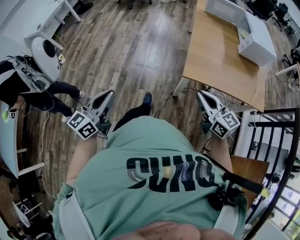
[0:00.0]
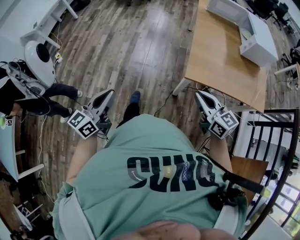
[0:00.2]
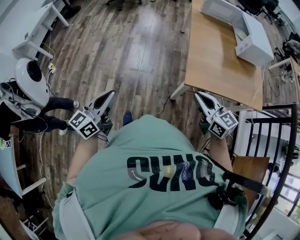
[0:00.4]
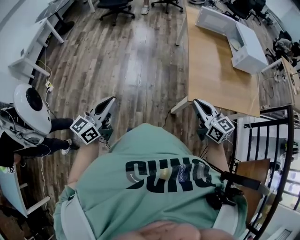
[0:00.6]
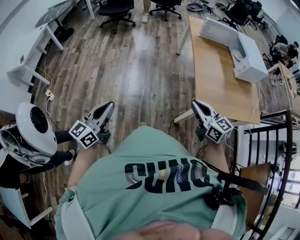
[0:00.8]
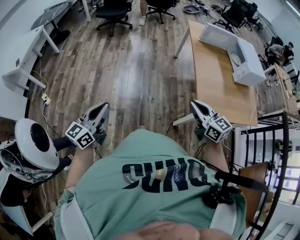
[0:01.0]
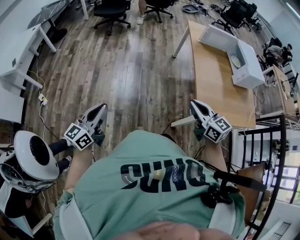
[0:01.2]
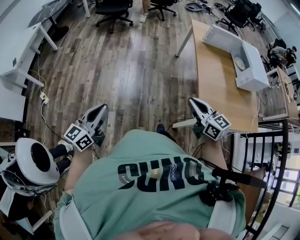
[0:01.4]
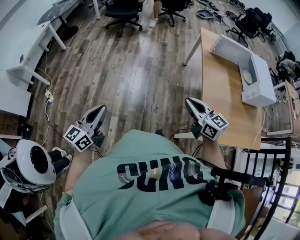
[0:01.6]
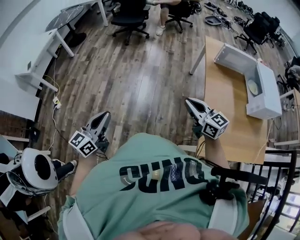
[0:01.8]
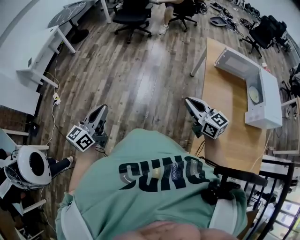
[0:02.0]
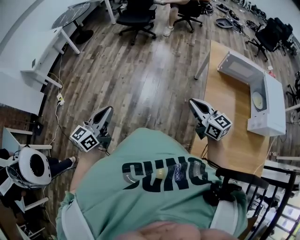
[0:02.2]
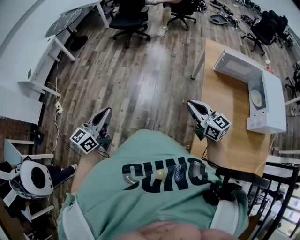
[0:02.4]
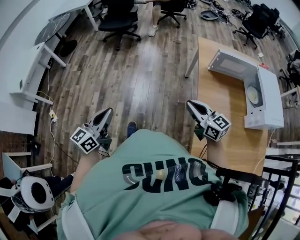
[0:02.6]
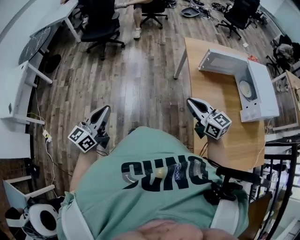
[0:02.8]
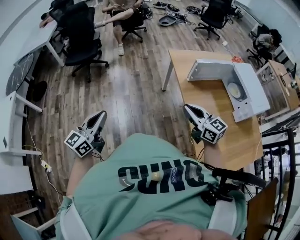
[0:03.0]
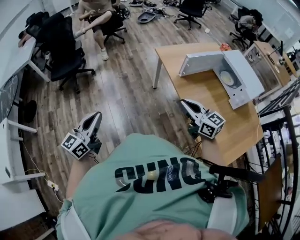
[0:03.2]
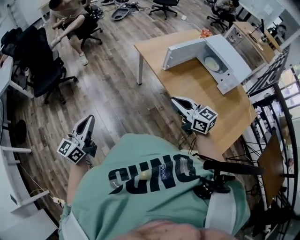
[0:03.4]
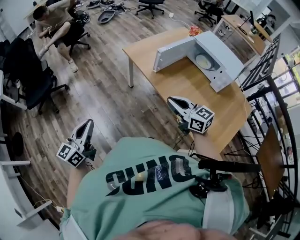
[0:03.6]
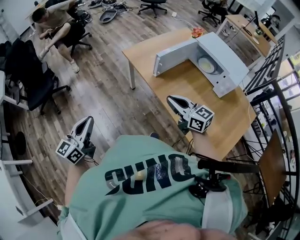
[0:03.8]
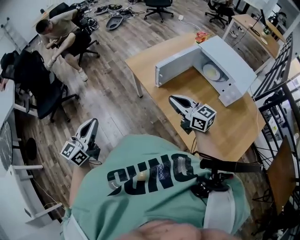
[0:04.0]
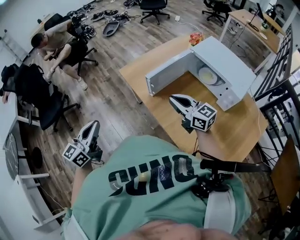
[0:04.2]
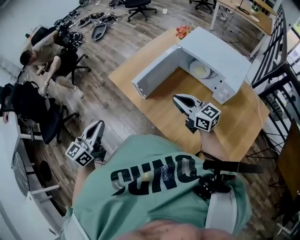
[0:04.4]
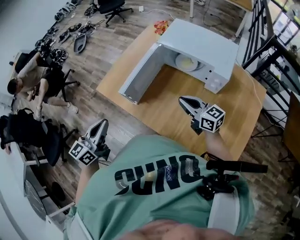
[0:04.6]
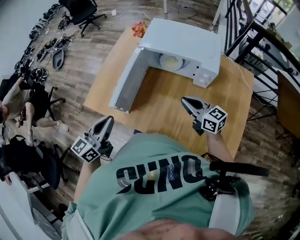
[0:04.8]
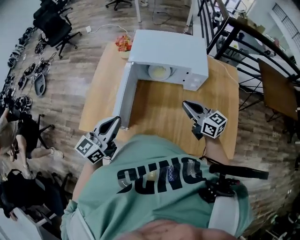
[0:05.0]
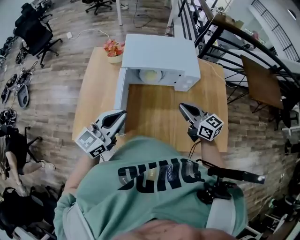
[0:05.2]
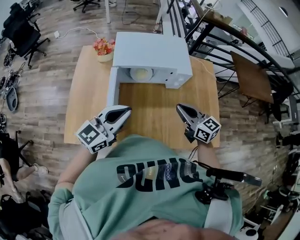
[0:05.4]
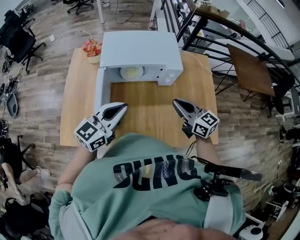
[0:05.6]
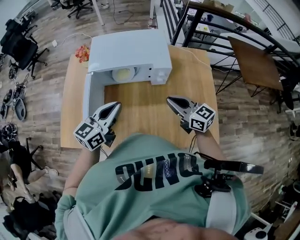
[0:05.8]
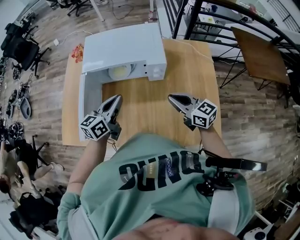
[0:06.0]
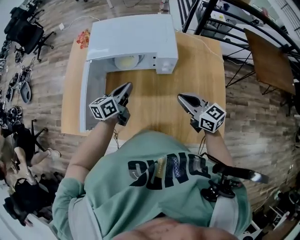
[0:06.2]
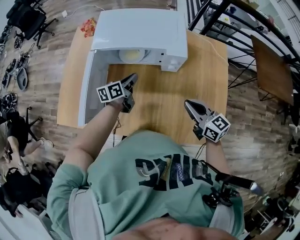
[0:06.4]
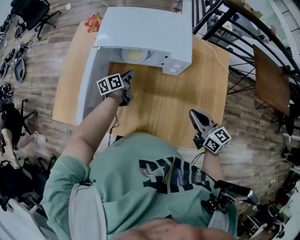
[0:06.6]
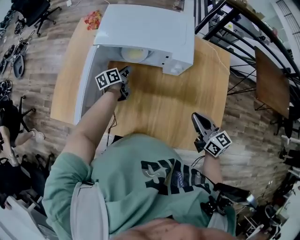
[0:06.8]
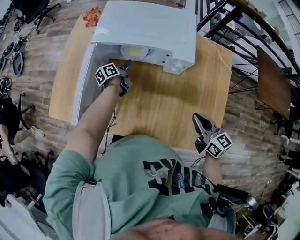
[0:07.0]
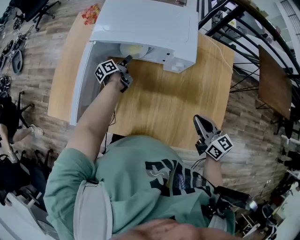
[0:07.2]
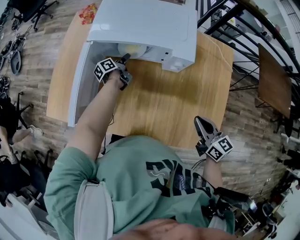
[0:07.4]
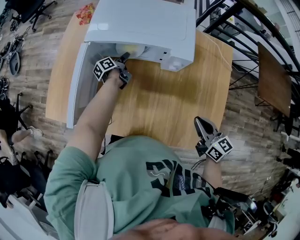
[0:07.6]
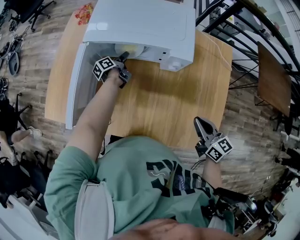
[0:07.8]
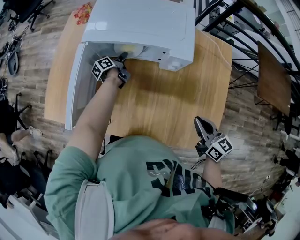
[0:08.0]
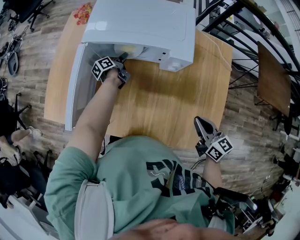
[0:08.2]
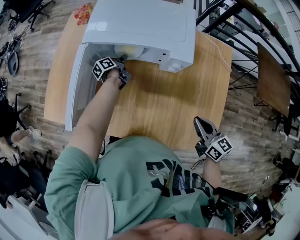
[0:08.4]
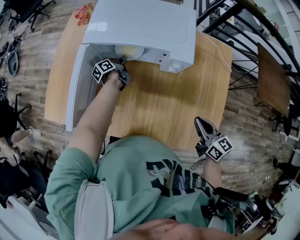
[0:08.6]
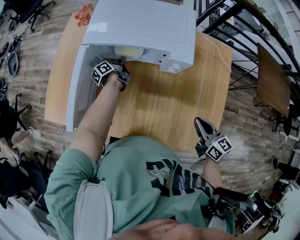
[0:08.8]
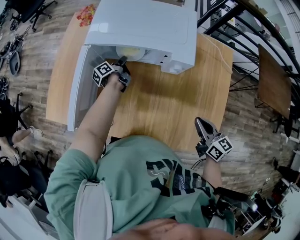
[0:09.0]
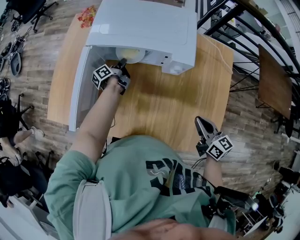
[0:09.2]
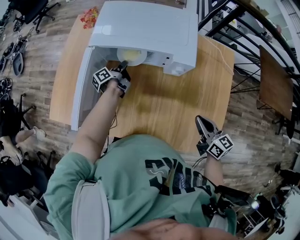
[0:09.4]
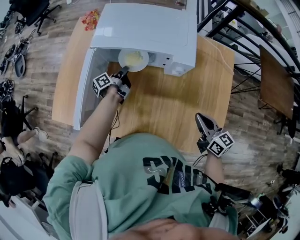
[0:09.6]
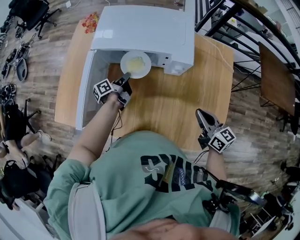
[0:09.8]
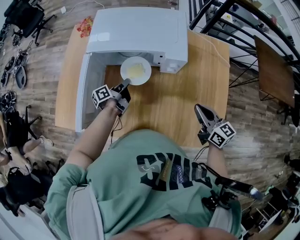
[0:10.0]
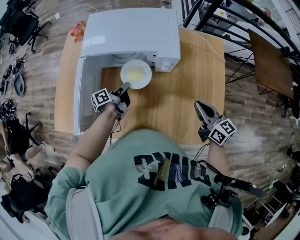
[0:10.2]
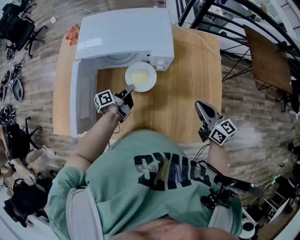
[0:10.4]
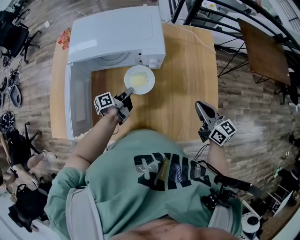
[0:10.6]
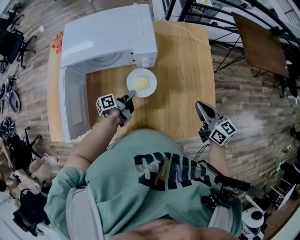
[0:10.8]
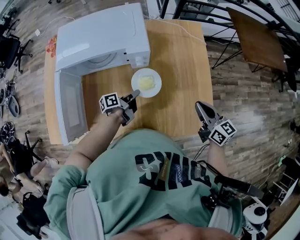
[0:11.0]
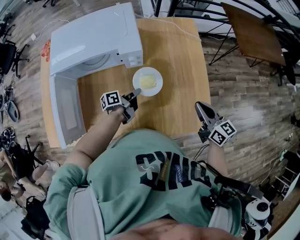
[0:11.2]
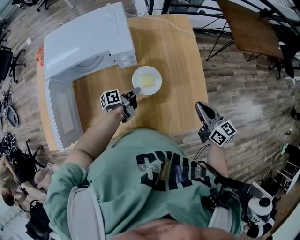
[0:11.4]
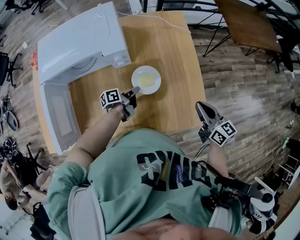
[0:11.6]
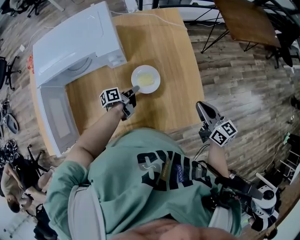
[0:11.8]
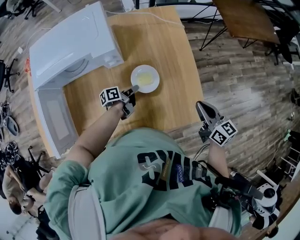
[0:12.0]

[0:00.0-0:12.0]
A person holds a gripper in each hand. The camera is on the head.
0:00.0 to 0:01.6: The pair of grippers is taken forward and to the left, some 50 cm.
0:01.6 to 0:03.0: The left gripper ends up about 50 cm from where it was, while the right gripper changes place by roughly 35 cm.
0:03.0 to 0:04.4: The right gripper changes place by some 35 cm, and turns by some 30 degrees. Meanwhile the left gripper ends up approximately 40 cm from where it was, and turns by some 30 degrees.
0:04.4 to 0:06.0: The right gripper goes up and down, approximately 5 cm each way, reversing 2 times, and turns by some 40 degrees. The left gripper shifts by roughly 40 cm, and turns by some 50 degrees.
0:06.0 to 0:07.6: The right gripper goes roughly 10 cm to the right and downward. The left gripper moves downward and forward, some 35 cm, twists approximately 50 degrees counterclockwise, seen from behind, and opens up.
0:07.6 to 0:09.0: The left gripper closes.
0:09.0 to 0:10.4: The left gripper shifts roughly 20 cm backward, to the right and upward, and swivels roughly 30 degrees.
0:10.4 to 0:12.0: The right gripper goes roughly 20 cm to the right; the left gripper moves to the right and downward, approximately 25 cm, and changes its angle by about 30 degrees.

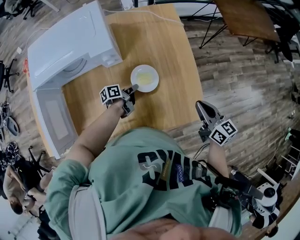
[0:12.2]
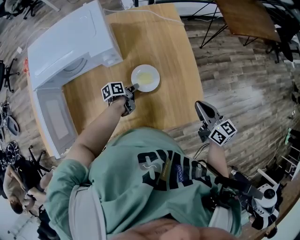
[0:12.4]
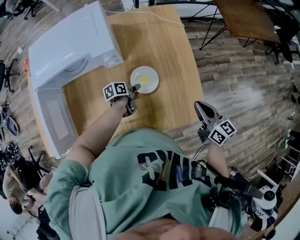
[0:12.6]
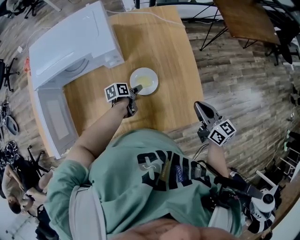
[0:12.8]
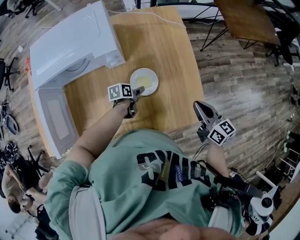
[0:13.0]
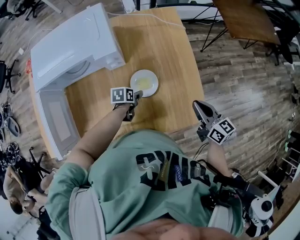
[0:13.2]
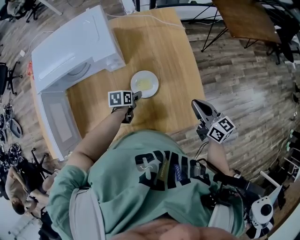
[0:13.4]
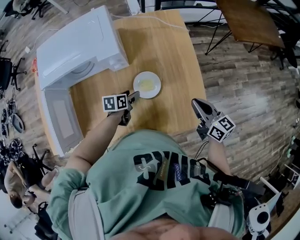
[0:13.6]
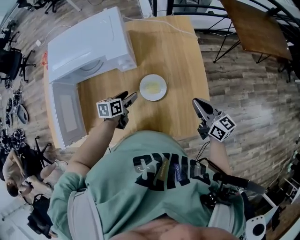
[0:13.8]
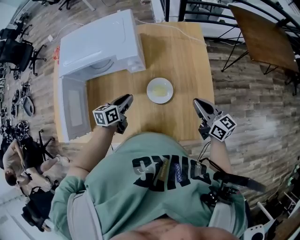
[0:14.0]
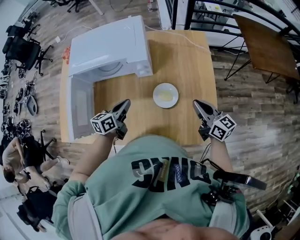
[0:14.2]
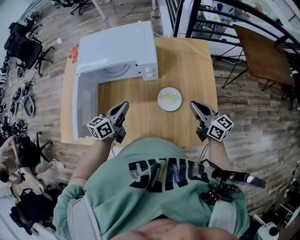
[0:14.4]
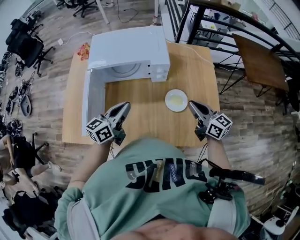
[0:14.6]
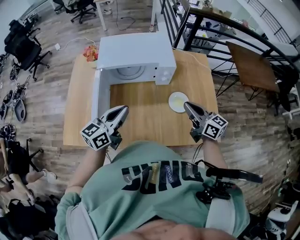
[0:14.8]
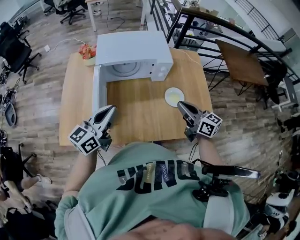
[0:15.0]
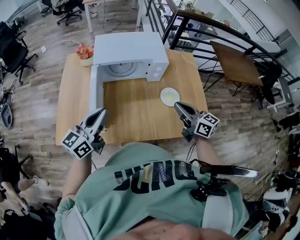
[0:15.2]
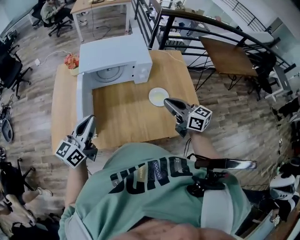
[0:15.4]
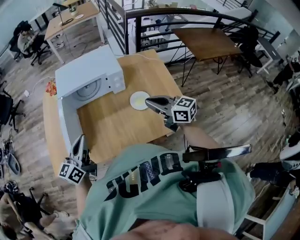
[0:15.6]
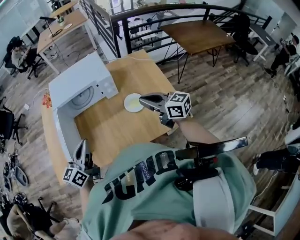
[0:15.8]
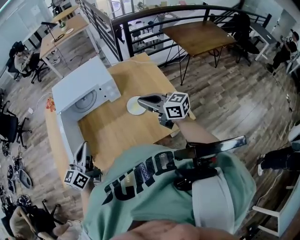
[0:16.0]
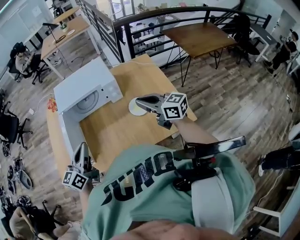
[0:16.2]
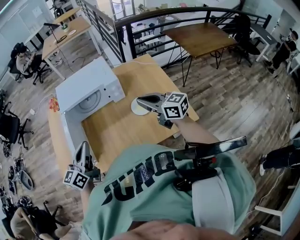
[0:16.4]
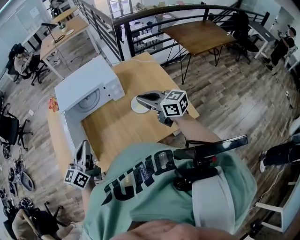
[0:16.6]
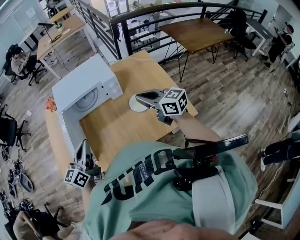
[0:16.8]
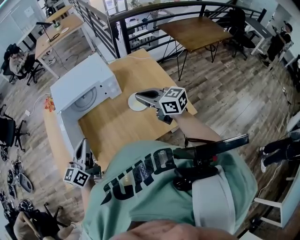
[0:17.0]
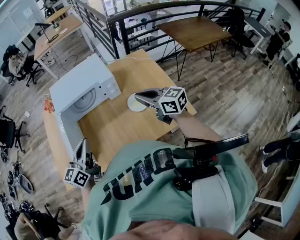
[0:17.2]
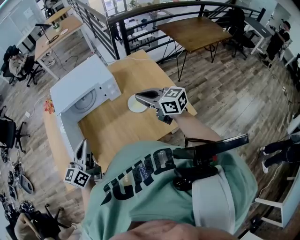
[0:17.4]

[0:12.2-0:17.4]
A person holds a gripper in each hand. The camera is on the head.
0:12.2 to 0:14.0: The left gripper heads upward and to the left, covering approximately 15 cm, rotates about 40 degrees, and opens, then closes once more. Meanwhile the right gripper is displaced to the left and forward by roughly 10 cm.
0:14.0 to 0:15.6: The left gripper moves upward, to the left and backward, roughly 35 cm, and tips its fingers upward by approximately 30 degrees. Meanwhile the right gripper is displaced to the left, upward and backward by some 25 cm.
0:15.6 to 0:17.4: The grippers make only small movements.

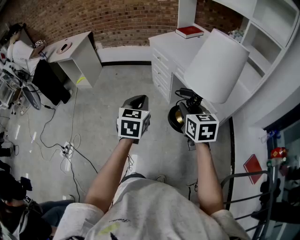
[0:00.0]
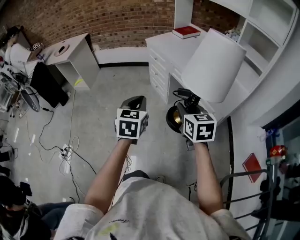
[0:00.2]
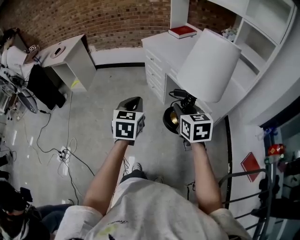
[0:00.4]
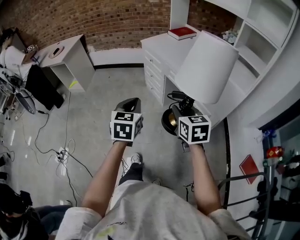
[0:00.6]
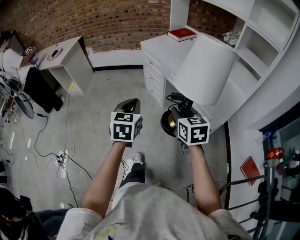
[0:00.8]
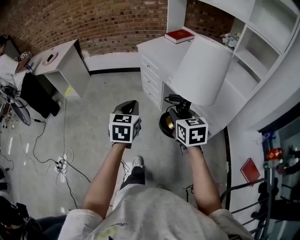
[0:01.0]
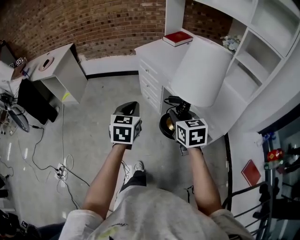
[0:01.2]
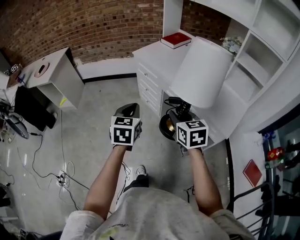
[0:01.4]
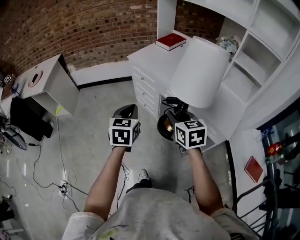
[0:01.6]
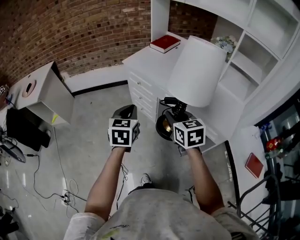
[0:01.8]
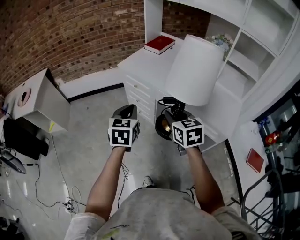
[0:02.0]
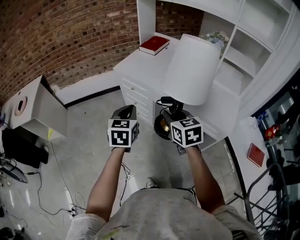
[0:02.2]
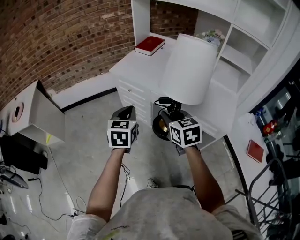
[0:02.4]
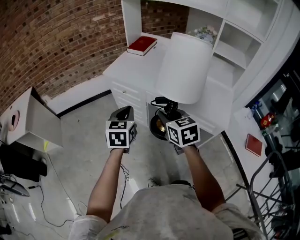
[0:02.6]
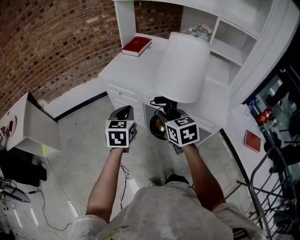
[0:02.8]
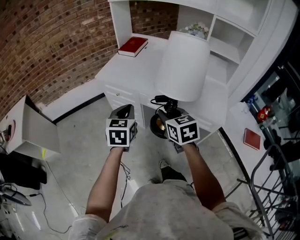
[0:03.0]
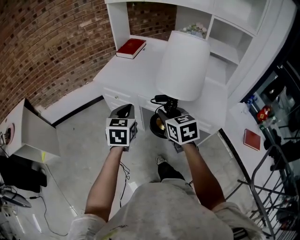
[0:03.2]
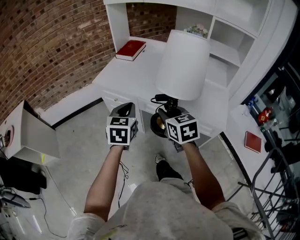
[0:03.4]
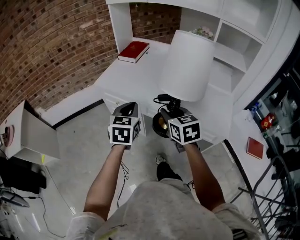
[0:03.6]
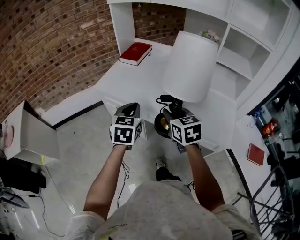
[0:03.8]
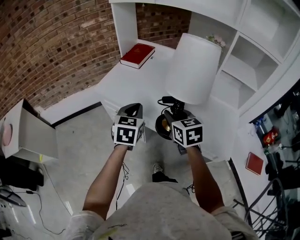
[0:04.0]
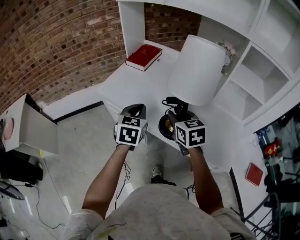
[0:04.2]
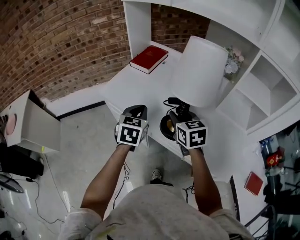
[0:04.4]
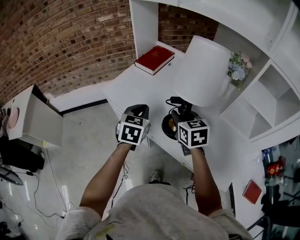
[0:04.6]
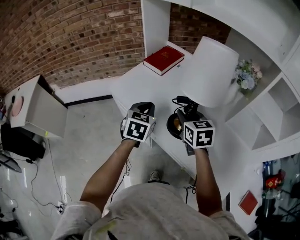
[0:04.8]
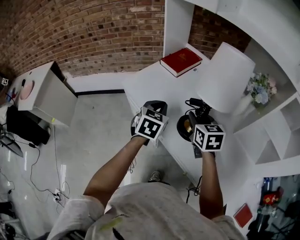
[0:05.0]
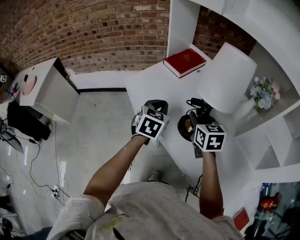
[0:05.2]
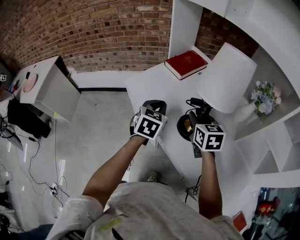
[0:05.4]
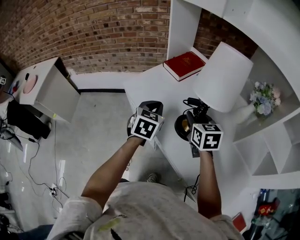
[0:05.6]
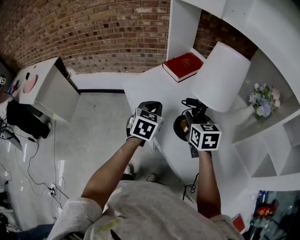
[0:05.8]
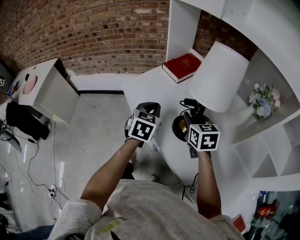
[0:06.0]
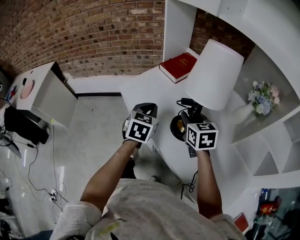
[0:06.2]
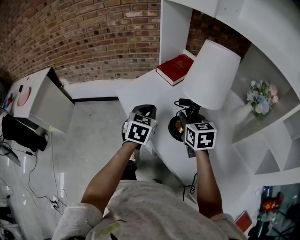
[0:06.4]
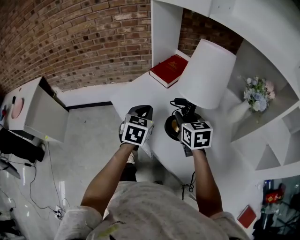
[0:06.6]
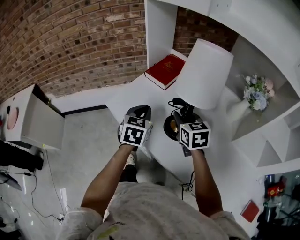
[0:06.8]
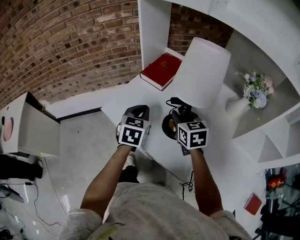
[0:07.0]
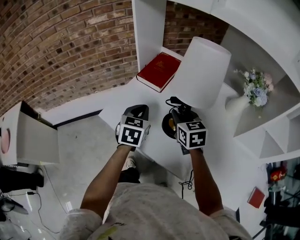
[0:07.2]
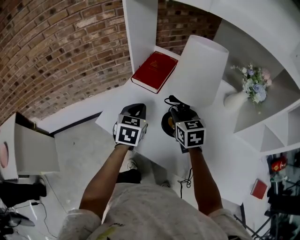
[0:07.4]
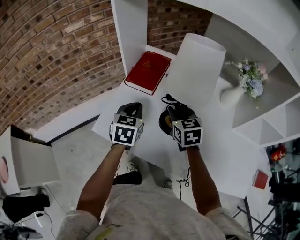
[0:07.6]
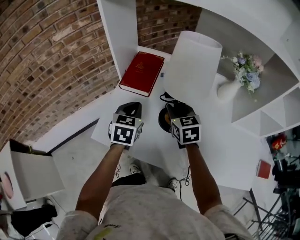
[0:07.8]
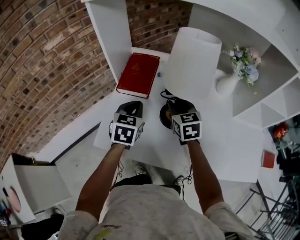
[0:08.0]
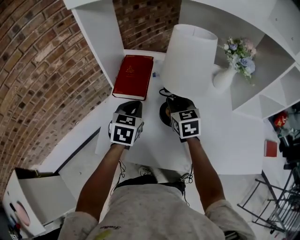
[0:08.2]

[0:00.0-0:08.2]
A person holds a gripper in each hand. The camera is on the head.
0:00.0 to 0:01.6: The two grippers go approximately 20 cm forward.
0:01.6 to 0:03.2: The left gripper goes about 15 cm forward, and rotates approximately 20 degrees; the right gripper moves forward, approximately 10 cm.
0:03.2 to 0:05.0: The two grippers go about 30 cm forward.
0:05.0 to 0:06.6: Both grippers move forward, approximately 10 cm.
0:06.6 to 0:08.2: The left gripper changes place by some 20 cm, and rotates some 30 degrees. Meanwhile the right gripper moves roughly 15 cm, and changes its angle by some 30 degrees.
